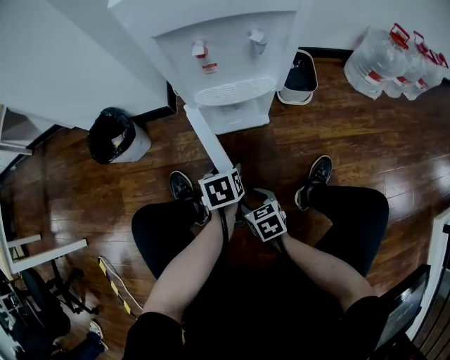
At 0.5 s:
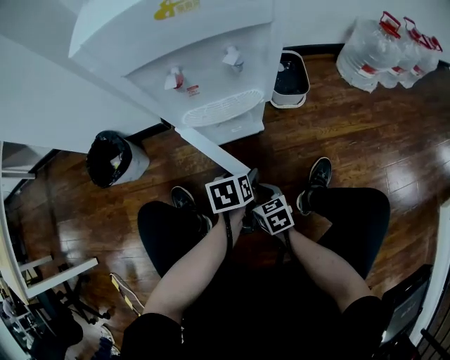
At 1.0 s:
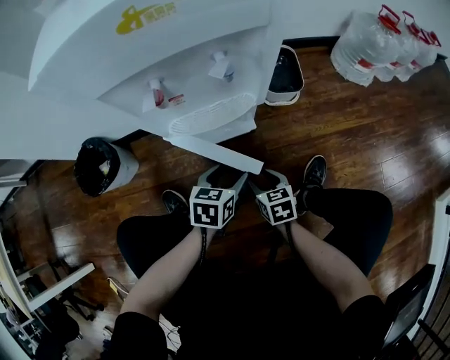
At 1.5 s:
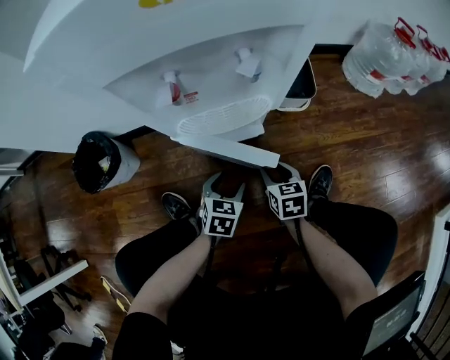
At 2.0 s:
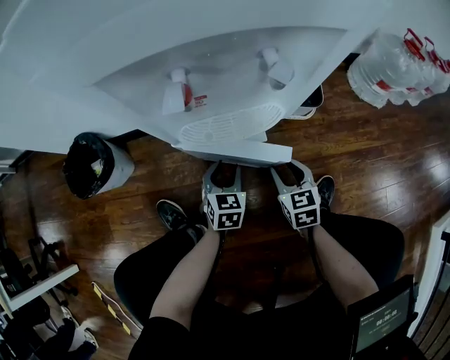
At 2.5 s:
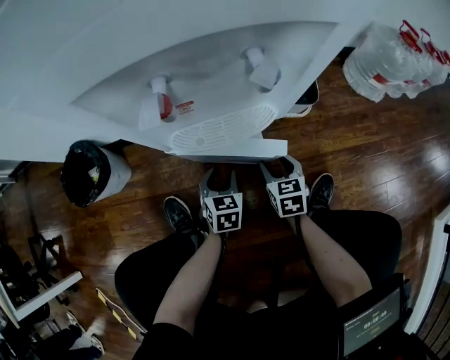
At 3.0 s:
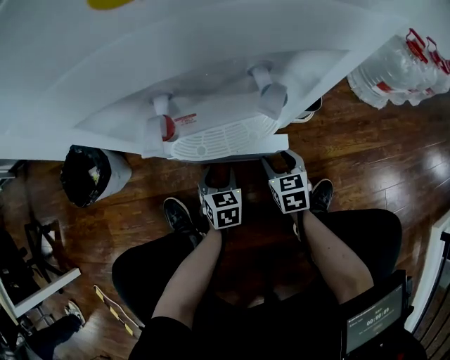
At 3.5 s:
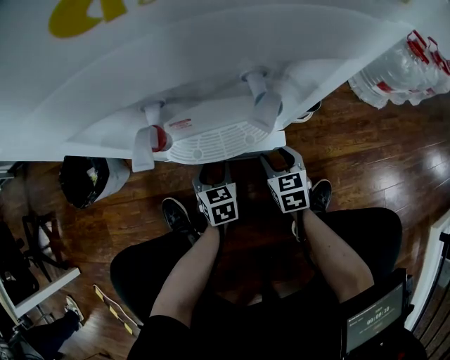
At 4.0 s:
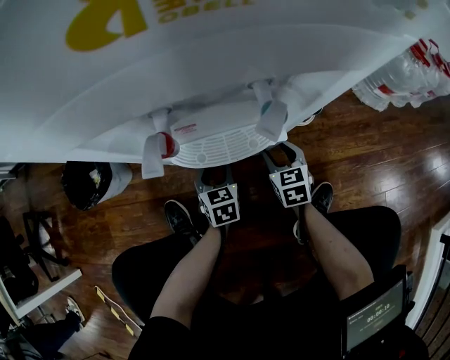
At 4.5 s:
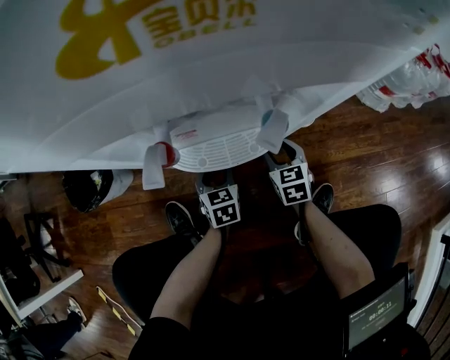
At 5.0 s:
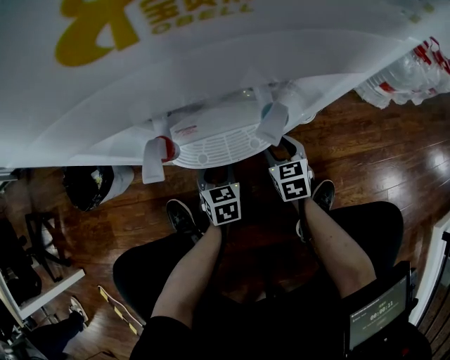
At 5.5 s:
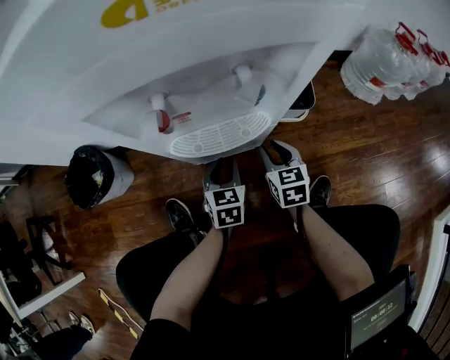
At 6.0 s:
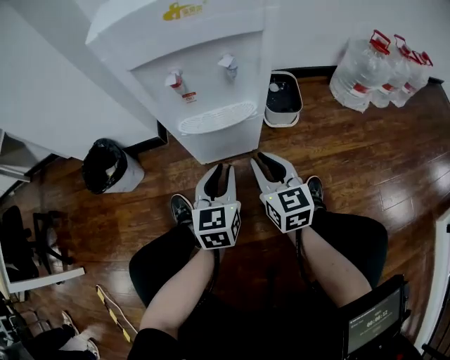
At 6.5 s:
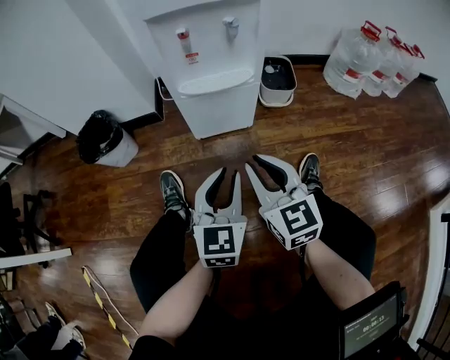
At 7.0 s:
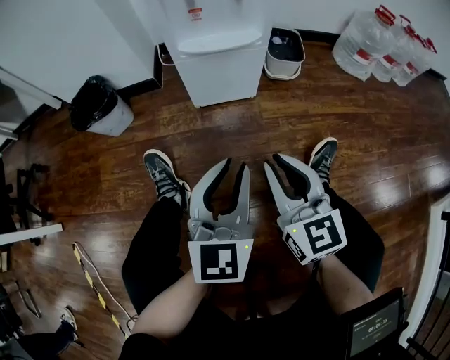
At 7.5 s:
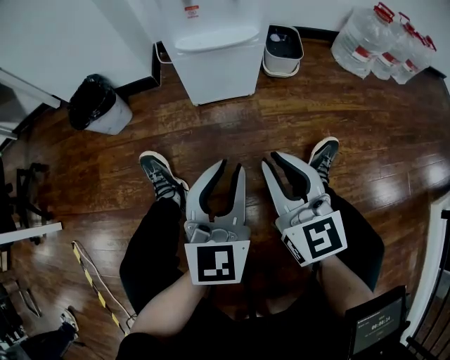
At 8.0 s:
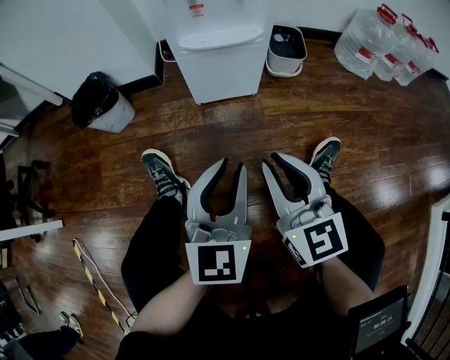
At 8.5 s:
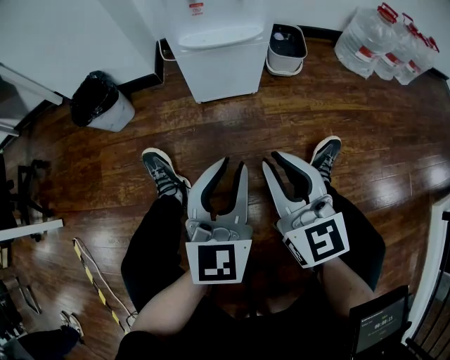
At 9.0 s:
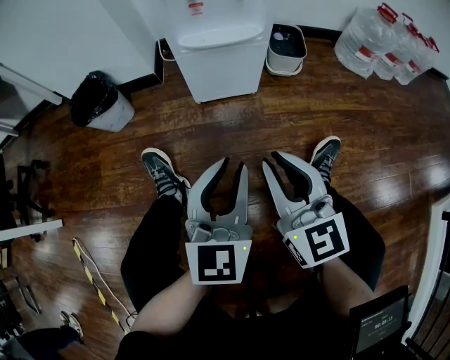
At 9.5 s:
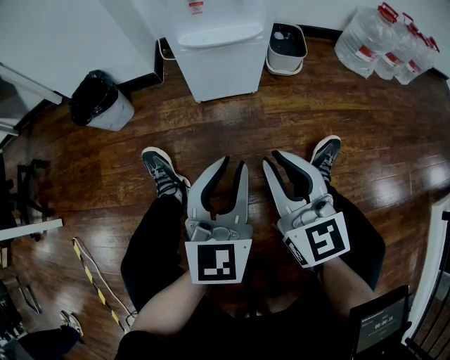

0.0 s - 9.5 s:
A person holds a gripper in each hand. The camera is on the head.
0.0 s - 2.0 s: The right gripper goes some 25 cm forward and to the right, and turns by approximately 20 degrees. Meanwhile the left gripper goes about 15 cm forward and downward, and swivels about 40 degrees.
2.0 s - 4.0 s: The left gripper shifts by about 5 cm; the right gripper heads forward, covering some 10 cm.
4.0 s - 5.5 s: The left gripper ends up roughly 5 cm from where it was.
5.5 s - 7.5 s: Both grippers travel together backward and upward, about 40 cm. The right gripper turns by roughly 30 degrees, while the left gripper swivels some 30 degrees.
7.5 s - 9.5 s: Both grippers stay about where they are.

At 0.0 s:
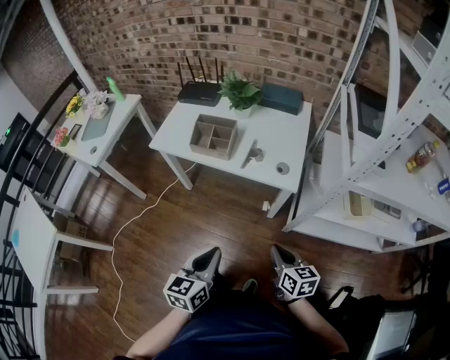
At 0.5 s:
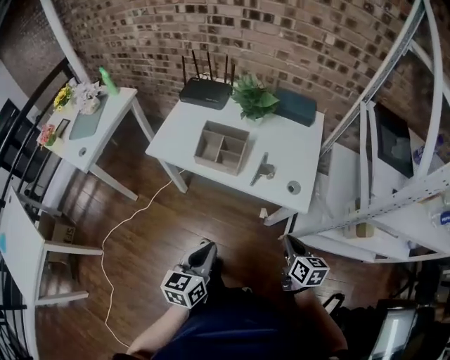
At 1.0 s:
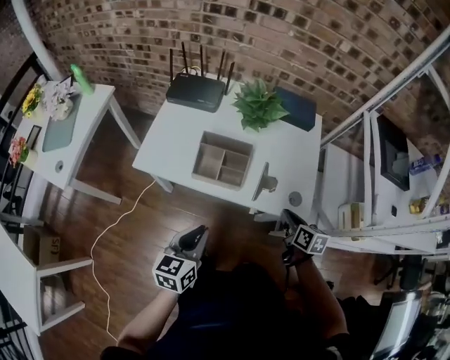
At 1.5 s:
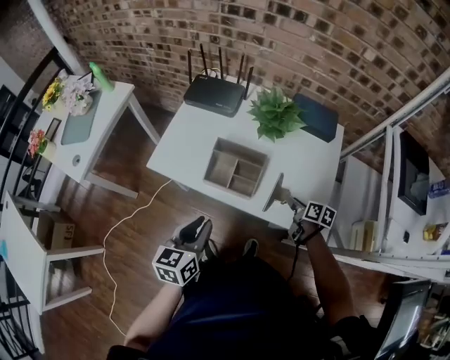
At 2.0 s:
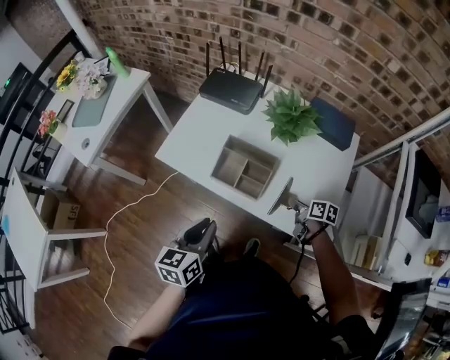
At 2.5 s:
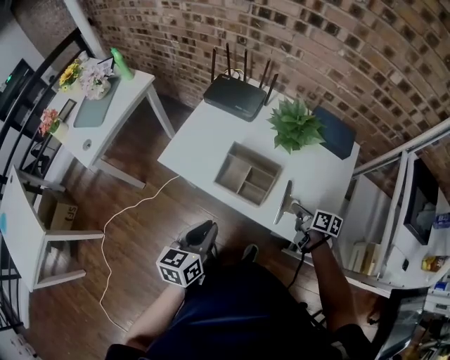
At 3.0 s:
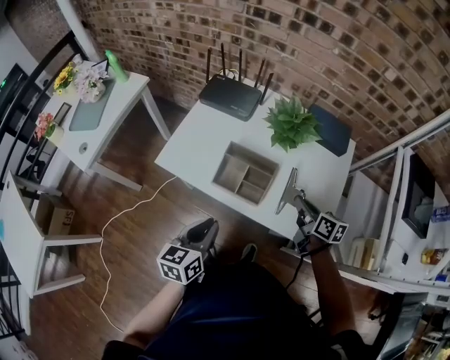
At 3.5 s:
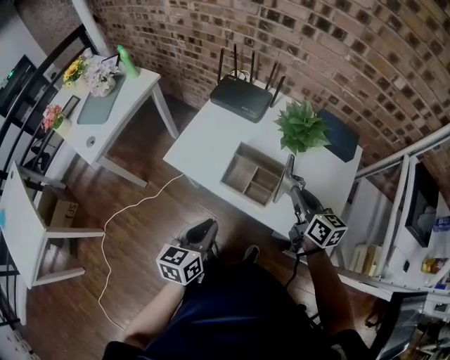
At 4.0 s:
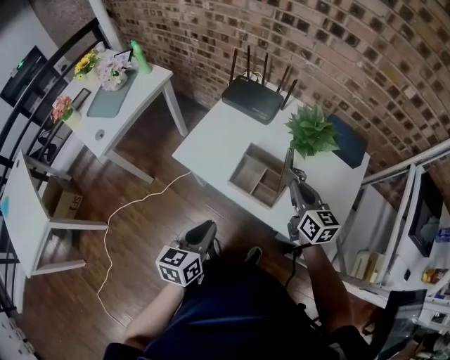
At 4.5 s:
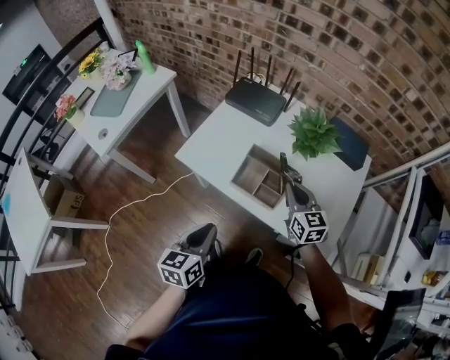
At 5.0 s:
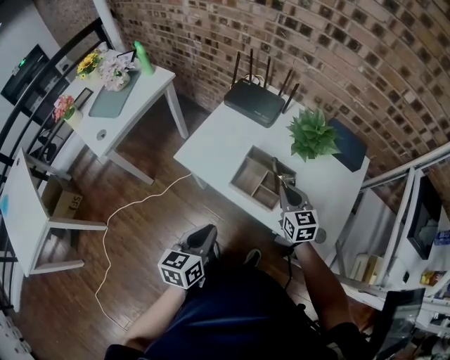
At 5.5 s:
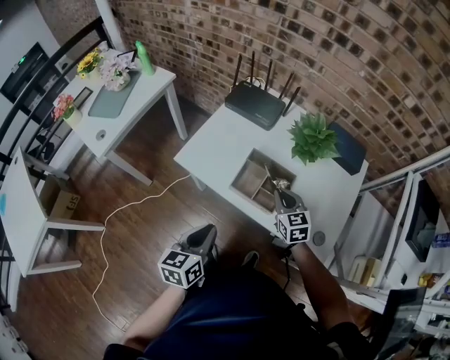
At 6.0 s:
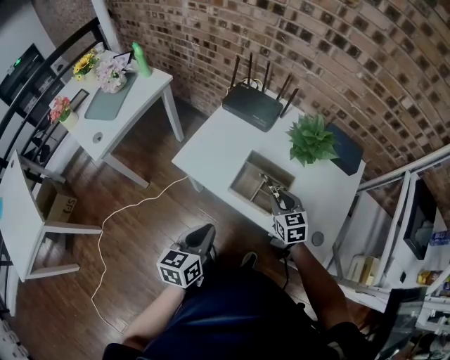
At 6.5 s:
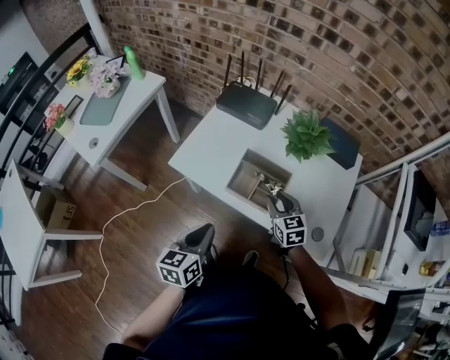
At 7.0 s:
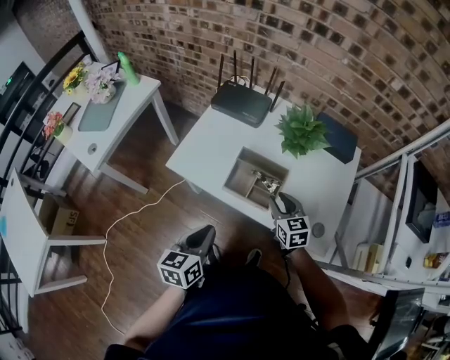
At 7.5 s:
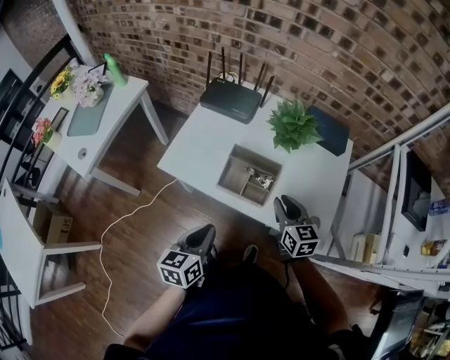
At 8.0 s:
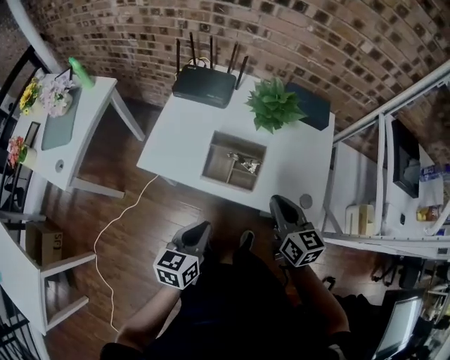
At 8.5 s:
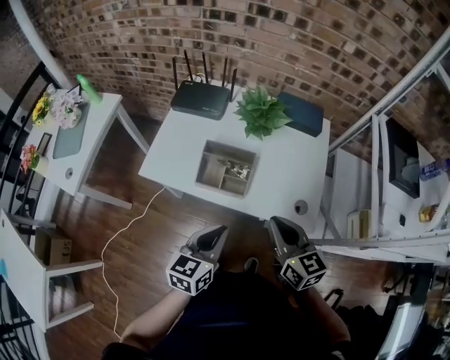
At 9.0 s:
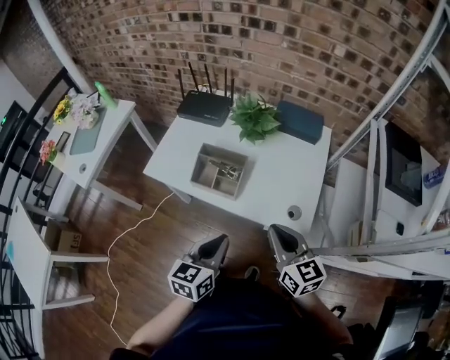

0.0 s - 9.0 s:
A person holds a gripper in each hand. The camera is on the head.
0.0 s - 2.0 s: Both grippers travel together forward, some 35 cm. The right gripper swivels approximately 30 degrees.
2.0 s - 4.5 s: The right gripper is displaced upward, to the left and forward by about 20 cm, and twists some 50 degrees counterclockwise, seen from behind, while the left gripper moves to the left, some 5 cm.
4.5 s - 7.0 s: The right gripper travels downward by about 5 cm, and opens up.
7.0 s - 9.0 s: The right gripper moves backward, upward and to the right, some 25 cm, changes its angle by approximately 20 degrees, and closes its fingers. The left gripper travels to the right by approximately 15 cm.

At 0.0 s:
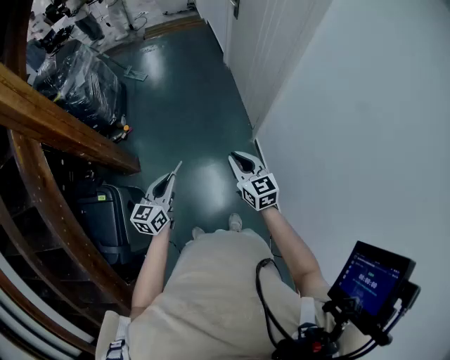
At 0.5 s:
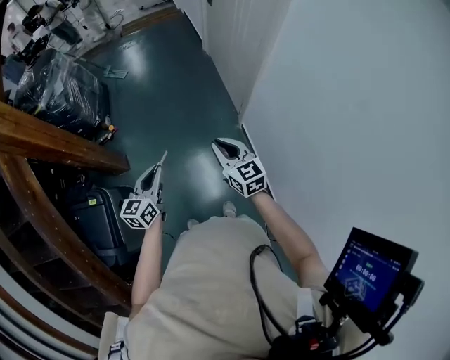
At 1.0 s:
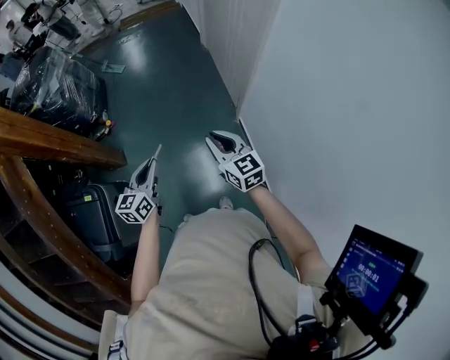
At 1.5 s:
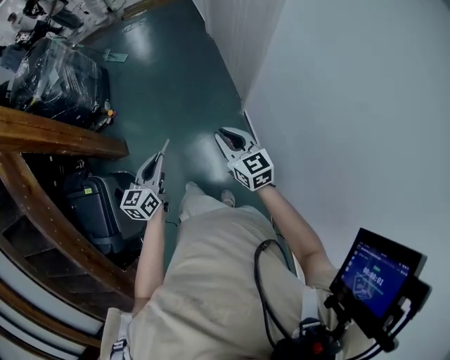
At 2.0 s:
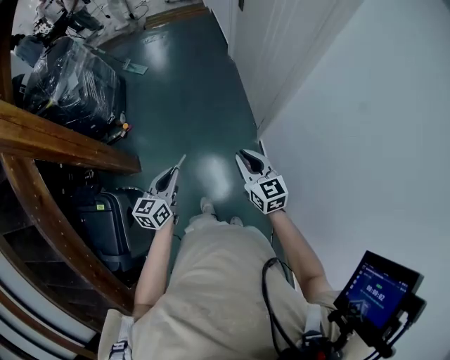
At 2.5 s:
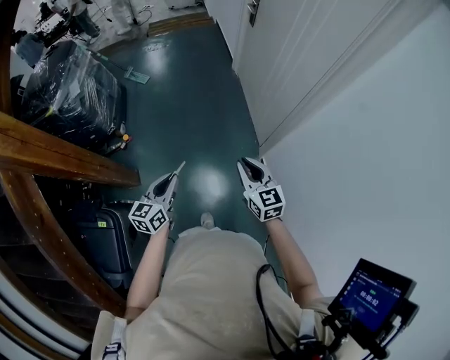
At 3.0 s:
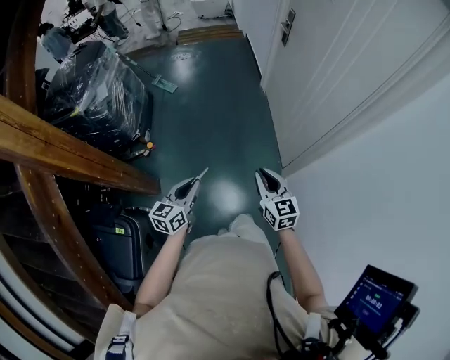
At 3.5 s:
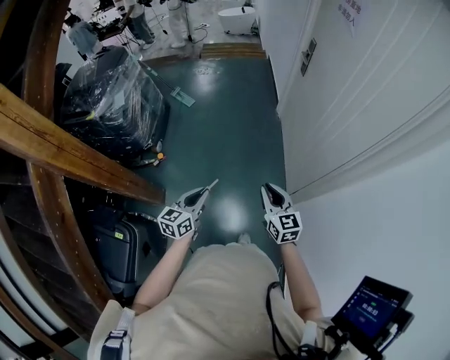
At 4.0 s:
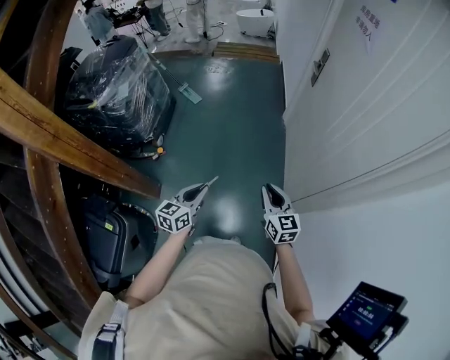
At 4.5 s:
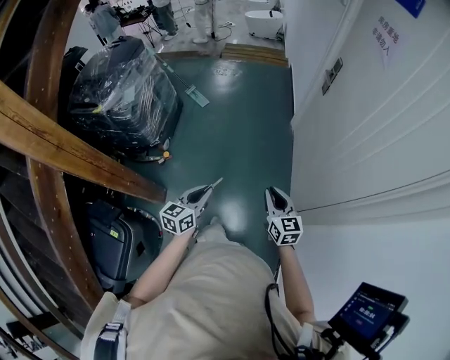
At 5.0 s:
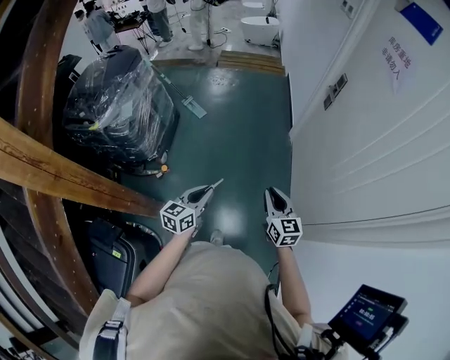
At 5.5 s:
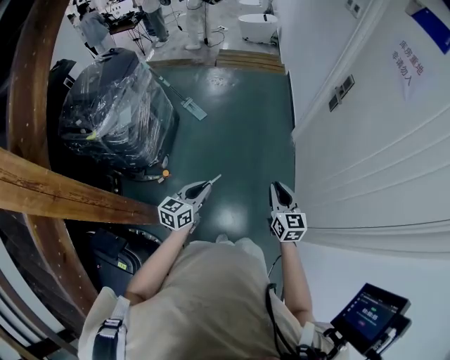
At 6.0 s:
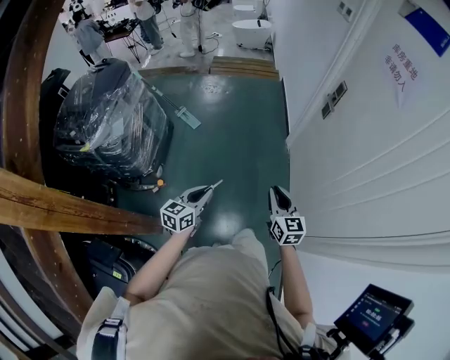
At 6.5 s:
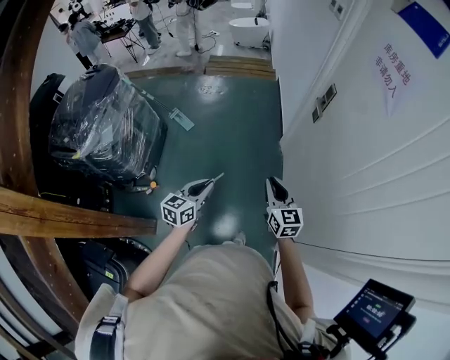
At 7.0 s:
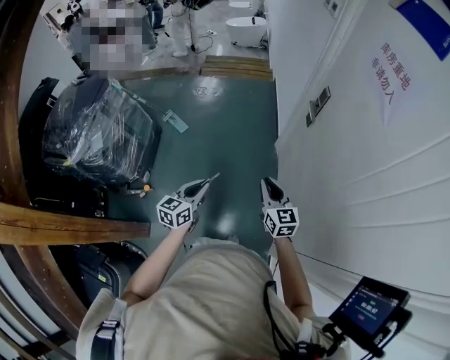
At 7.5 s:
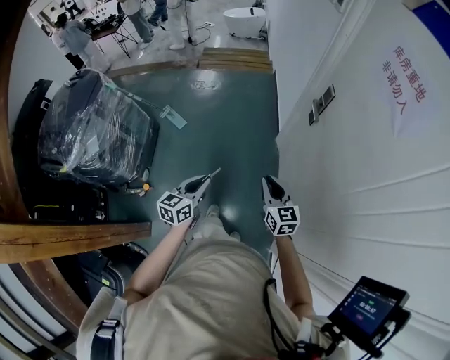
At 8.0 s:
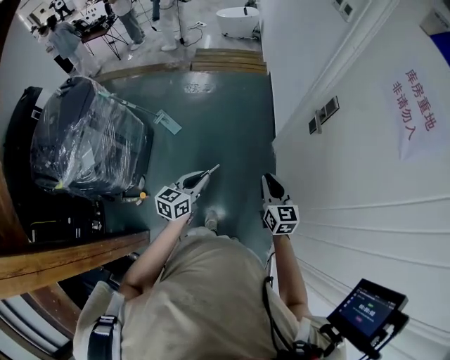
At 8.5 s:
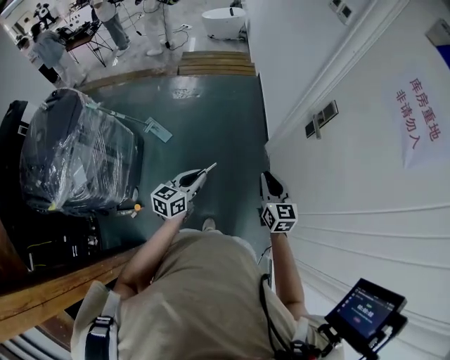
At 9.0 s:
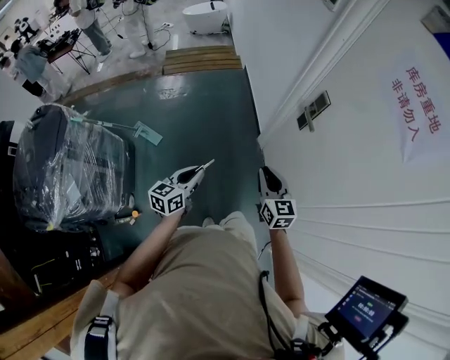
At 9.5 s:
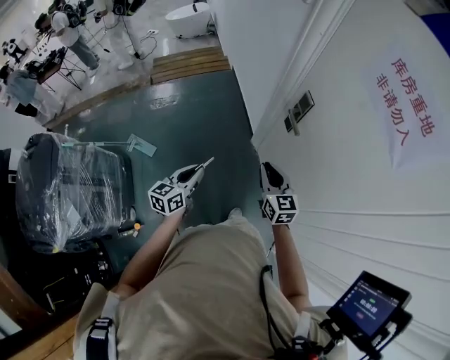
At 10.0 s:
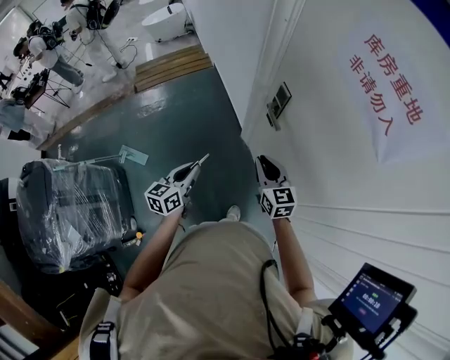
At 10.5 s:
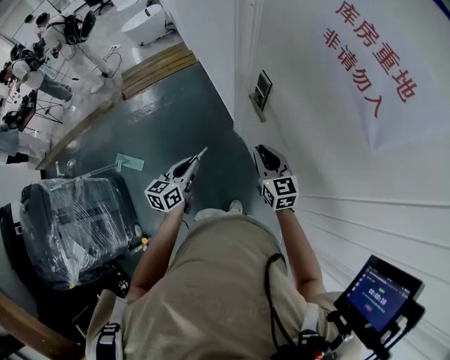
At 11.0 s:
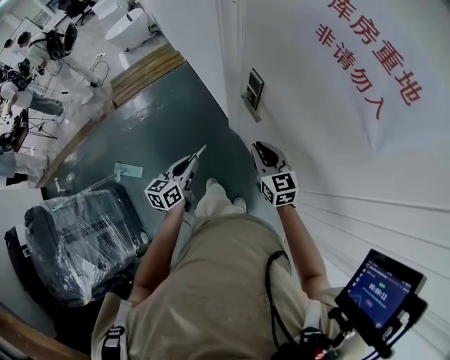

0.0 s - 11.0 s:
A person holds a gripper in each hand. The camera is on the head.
0.0 s - 2.0 s: The left gripper moves forward and downward, about 15 cm. Meanwhile the right gripper is displaced forward by about 10 cm.
2.0 s - 3.5 s: The two grippers go approximately 20 cm forward.
3.5 s - 5.5 s: The left gripper goes some 30 cm forward and to the left. The right gripper shifts approximately 25 cm forward.
5.5 s - 7.5 s: The two grippers go roughly 25 cm forward and to the right.
7.5 s - 9.0 s: The grippers both shift forward and to the left by about 15 cm.
9.0 s - 11.0 s: Both grippers move forward and to the right, some 25 cm.
